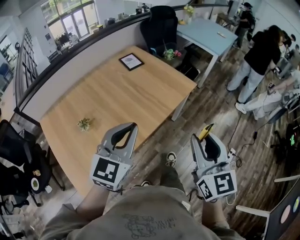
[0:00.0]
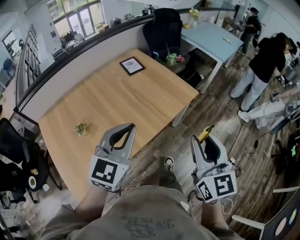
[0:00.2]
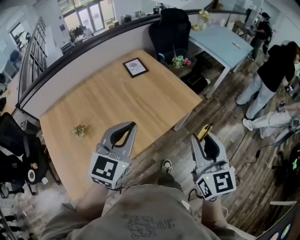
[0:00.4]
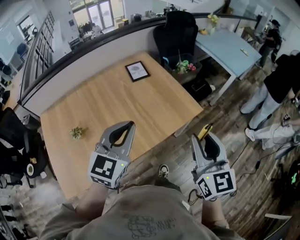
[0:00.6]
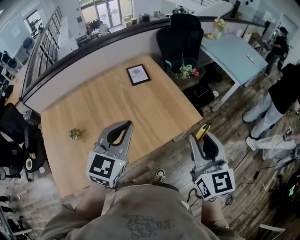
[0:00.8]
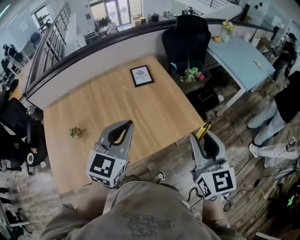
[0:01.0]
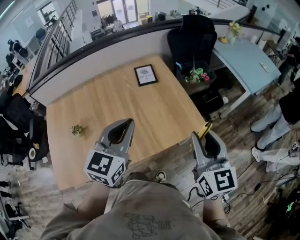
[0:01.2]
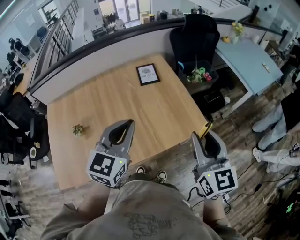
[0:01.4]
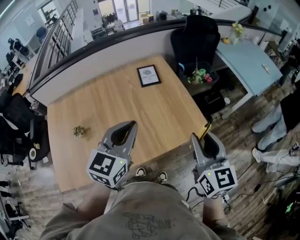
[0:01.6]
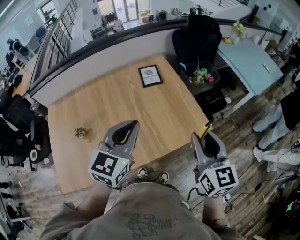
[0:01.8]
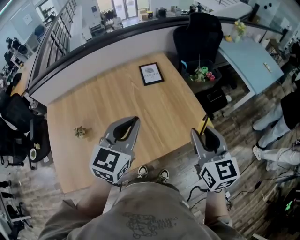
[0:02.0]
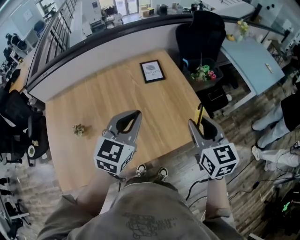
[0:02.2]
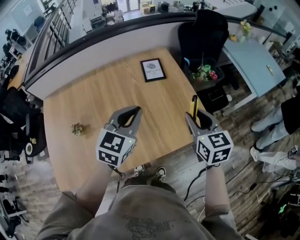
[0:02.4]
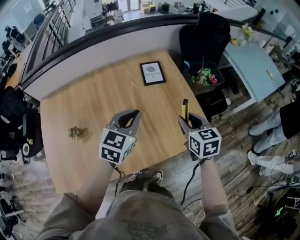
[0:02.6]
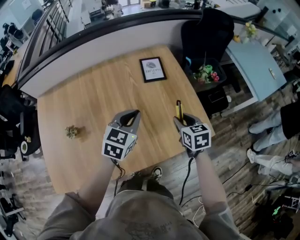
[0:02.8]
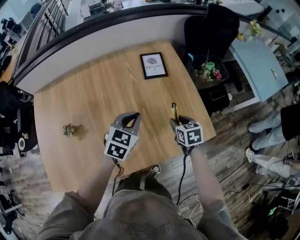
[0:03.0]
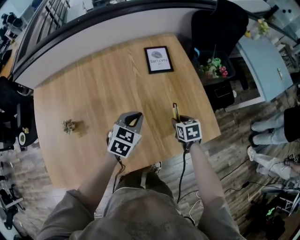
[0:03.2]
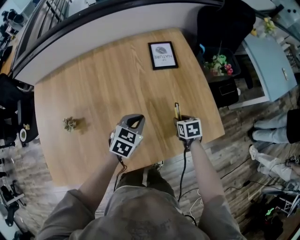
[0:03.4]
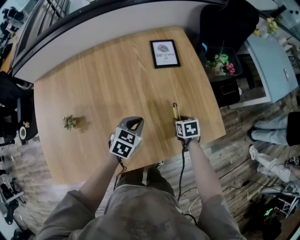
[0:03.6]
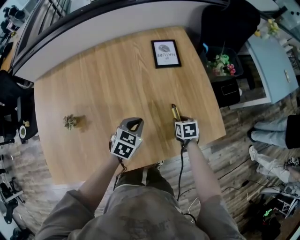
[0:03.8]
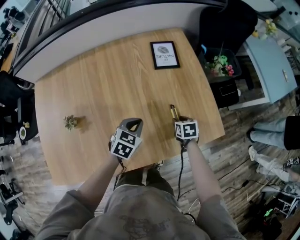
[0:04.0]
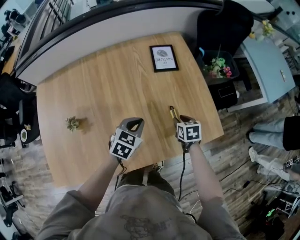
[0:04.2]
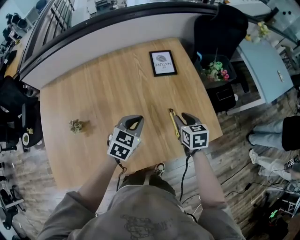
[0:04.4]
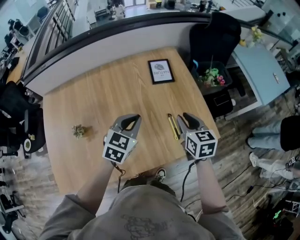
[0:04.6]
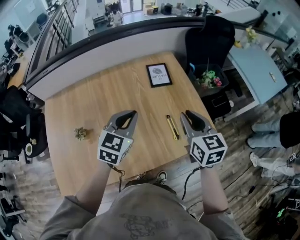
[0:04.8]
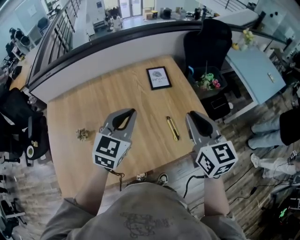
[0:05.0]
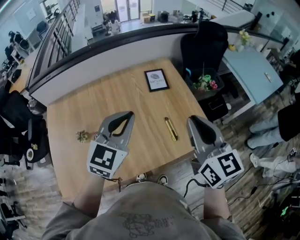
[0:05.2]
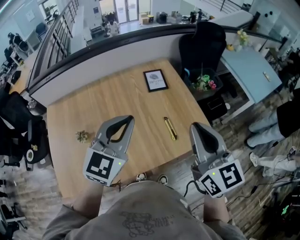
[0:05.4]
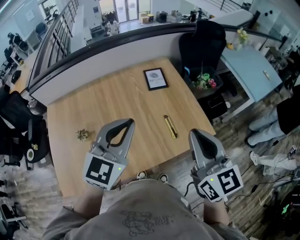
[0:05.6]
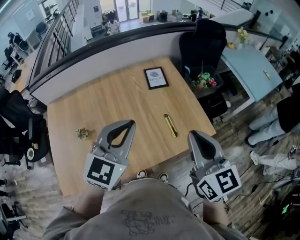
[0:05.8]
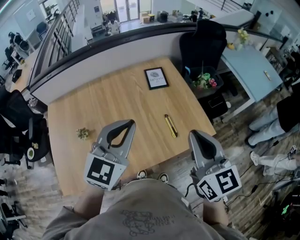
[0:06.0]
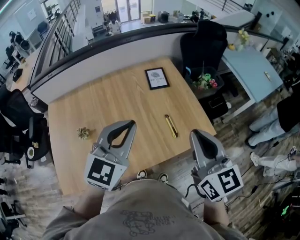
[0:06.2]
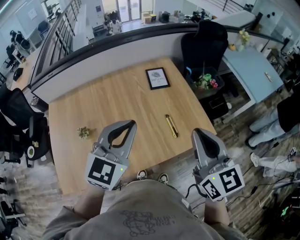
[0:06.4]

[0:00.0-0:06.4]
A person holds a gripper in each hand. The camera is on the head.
0:00.0 to 0:01.6: The left gripper goes approximately 25 cm forward and to the right, and changes its angle by about 20 degrees. The right gripper shifts about 30 cm forward, and swivels some 20 degrees.
0:01.6 to 0:03.2: The two grippers go some 35 cm downward and forward. The right gripper angles its fingers downward, by approximately 50 degrees; the left gripper turns by about 30 degrees.
0:03.2 to 0:04.8: The left gripper shifts approximately 15 cm upward. The right gripper shifts roughly 30 cm upward, and points its fingers about 40 degrees further upward.
0:04.8 to 0:06.4: The right gripper shifts roughly 20 cm backward and upward. Meanwhile the left gripper shifts some 15 cm upward and backward.

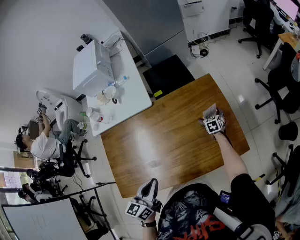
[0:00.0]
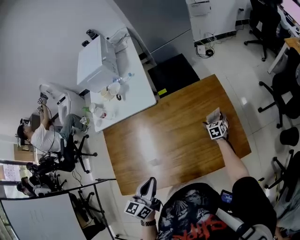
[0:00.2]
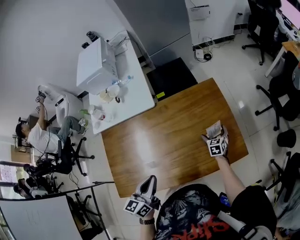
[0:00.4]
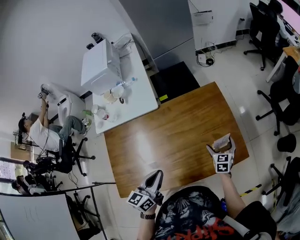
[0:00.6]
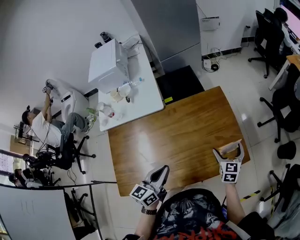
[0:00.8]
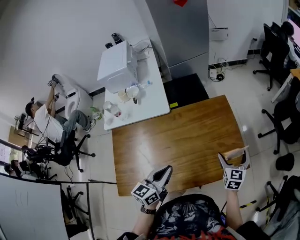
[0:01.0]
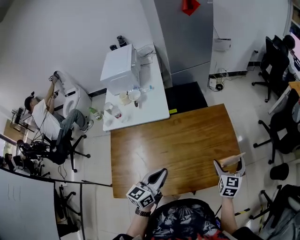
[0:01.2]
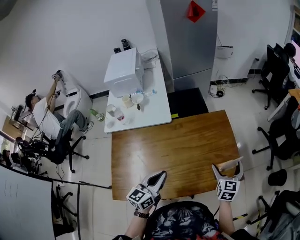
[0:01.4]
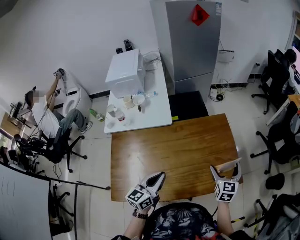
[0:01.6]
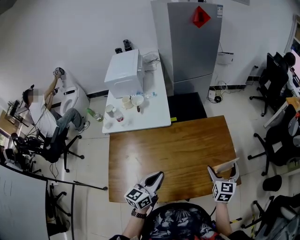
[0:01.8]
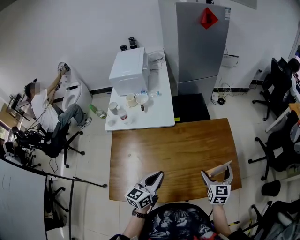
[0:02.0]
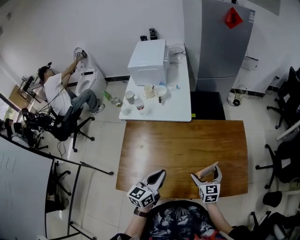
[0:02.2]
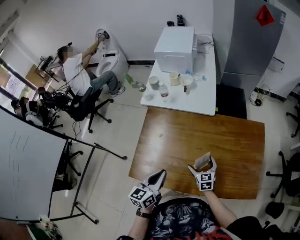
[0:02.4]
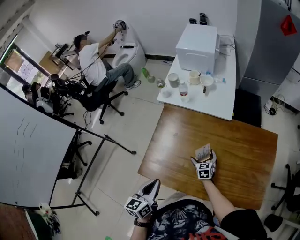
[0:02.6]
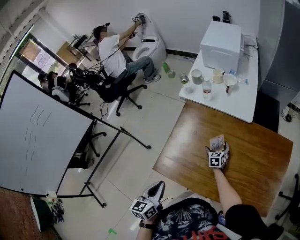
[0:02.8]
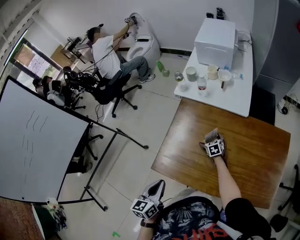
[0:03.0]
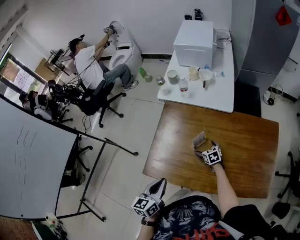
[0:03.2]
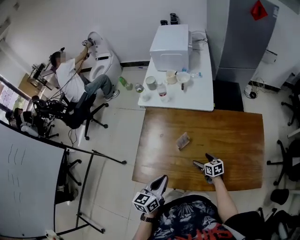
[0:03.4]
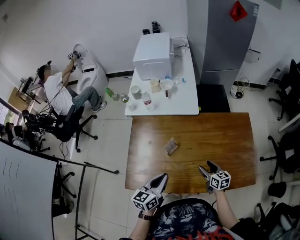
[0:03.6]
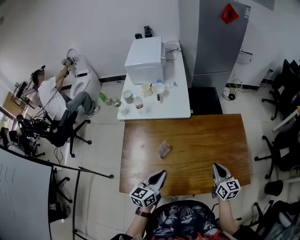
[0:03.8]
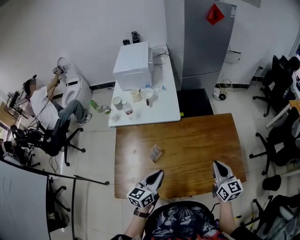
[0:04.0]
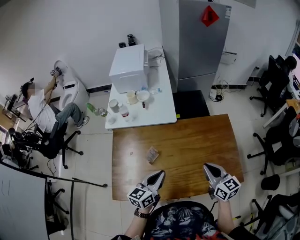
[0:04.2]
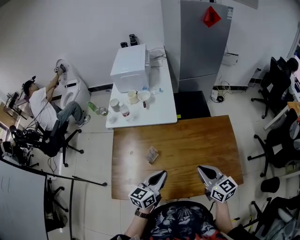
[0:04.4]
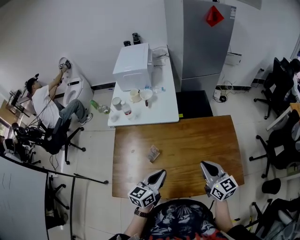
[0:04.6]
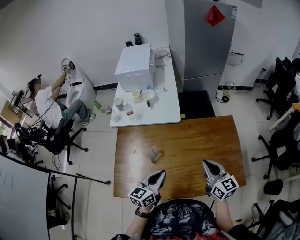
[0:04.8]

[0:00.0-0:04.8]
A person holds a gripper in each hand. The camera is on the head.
0:00.0 to 0:01.6: The left gripper shifts by about 5 cm. Meanwhile the right gripper goes approximately 35 cm upward and backward, and turns by about 30 degrees.
0:01.6 to 0:03.2: The right gripper ends up approximately 50 cm from where it was, and rotates some 60 degrees. Meanwhile the left gripper changes place by roughly 30 cm, and rotates approximately 40 degrees.
0:03.2 to 0:04.8: The left gripper shifts by approximately 25 cm, and rotates roughly 30 degrees. The right gripper moves upward, some 30 cm, angles its fingers upward, by some 40 degrees, and closes up.

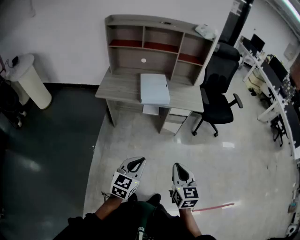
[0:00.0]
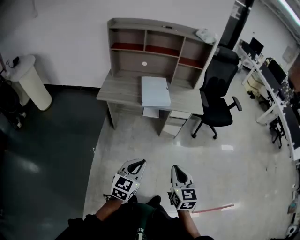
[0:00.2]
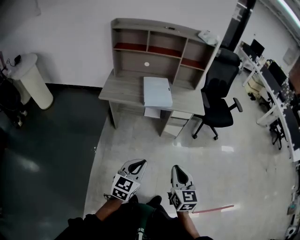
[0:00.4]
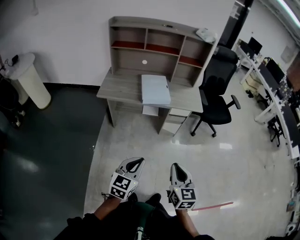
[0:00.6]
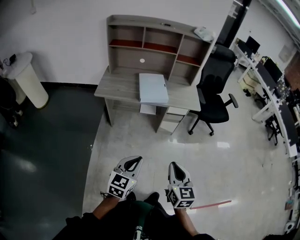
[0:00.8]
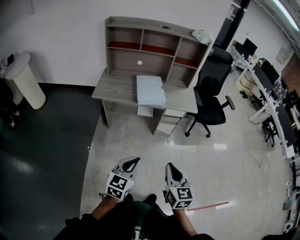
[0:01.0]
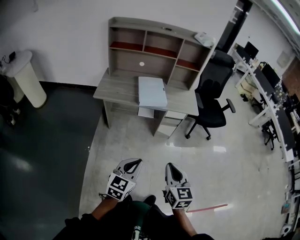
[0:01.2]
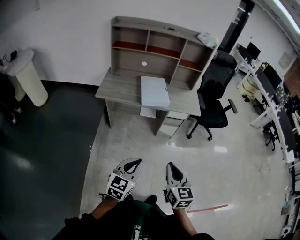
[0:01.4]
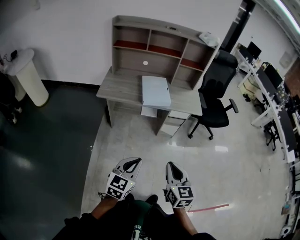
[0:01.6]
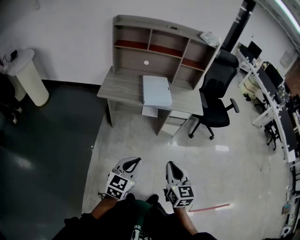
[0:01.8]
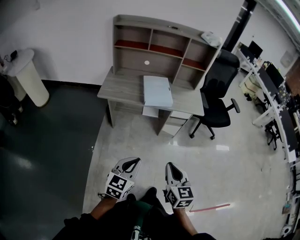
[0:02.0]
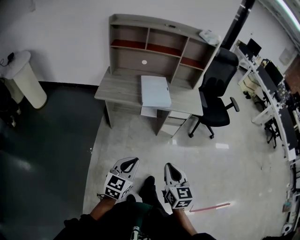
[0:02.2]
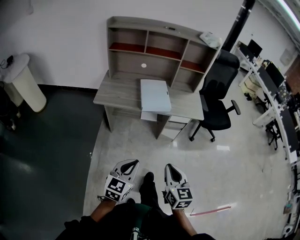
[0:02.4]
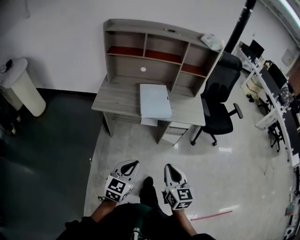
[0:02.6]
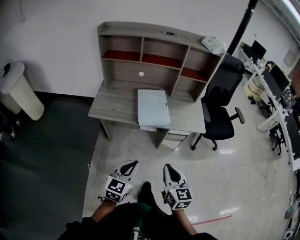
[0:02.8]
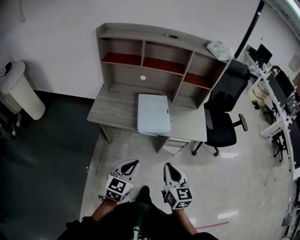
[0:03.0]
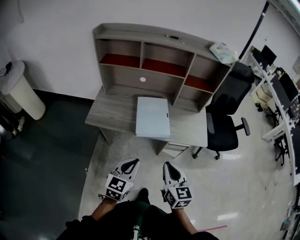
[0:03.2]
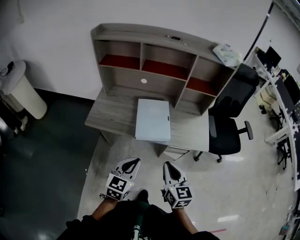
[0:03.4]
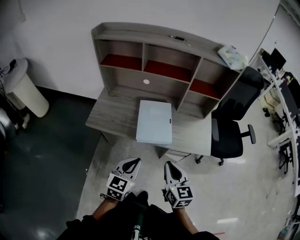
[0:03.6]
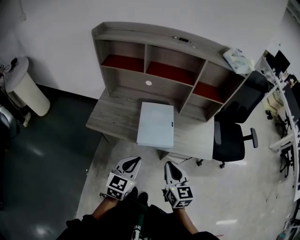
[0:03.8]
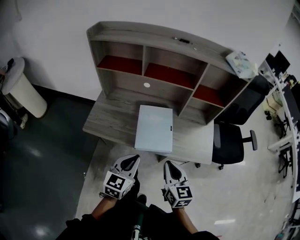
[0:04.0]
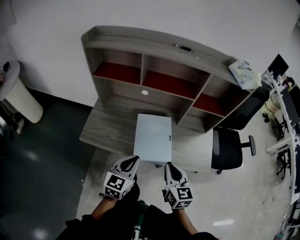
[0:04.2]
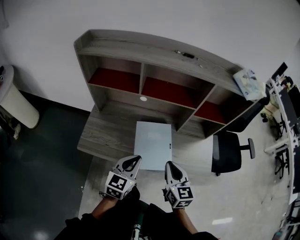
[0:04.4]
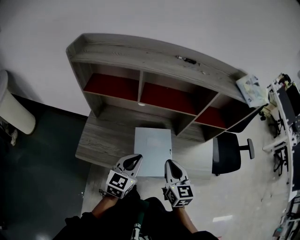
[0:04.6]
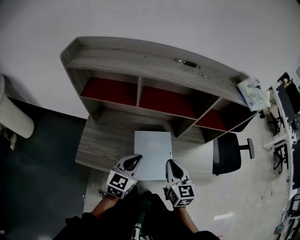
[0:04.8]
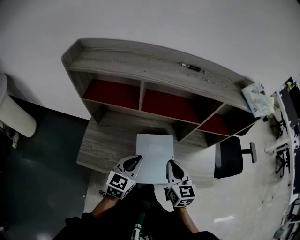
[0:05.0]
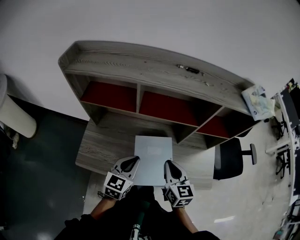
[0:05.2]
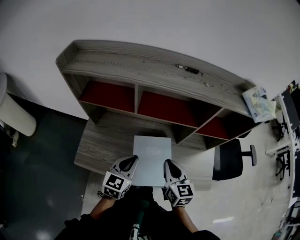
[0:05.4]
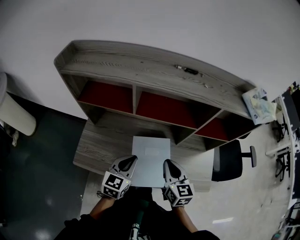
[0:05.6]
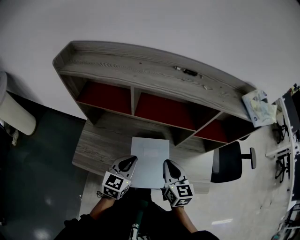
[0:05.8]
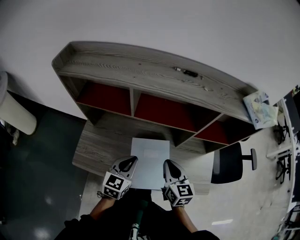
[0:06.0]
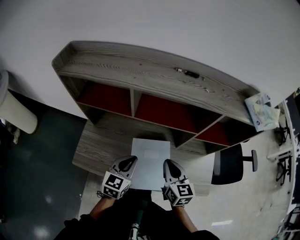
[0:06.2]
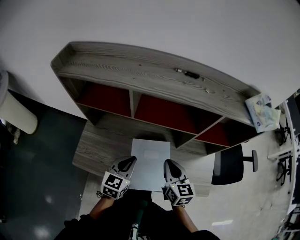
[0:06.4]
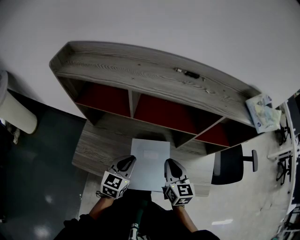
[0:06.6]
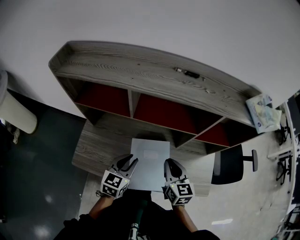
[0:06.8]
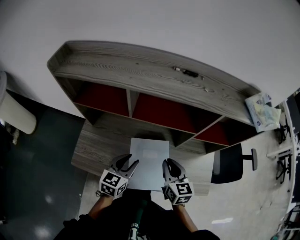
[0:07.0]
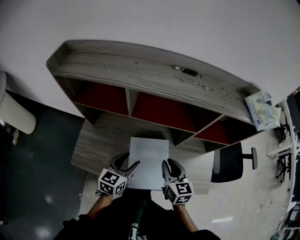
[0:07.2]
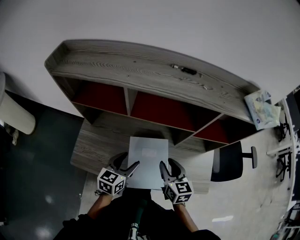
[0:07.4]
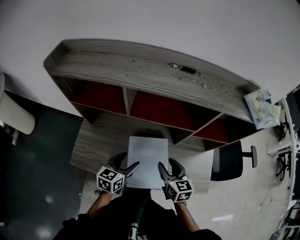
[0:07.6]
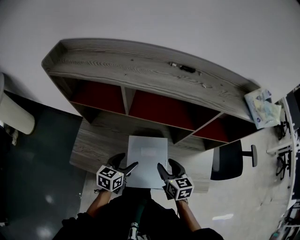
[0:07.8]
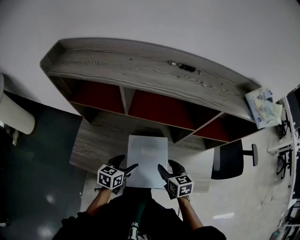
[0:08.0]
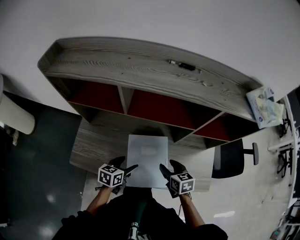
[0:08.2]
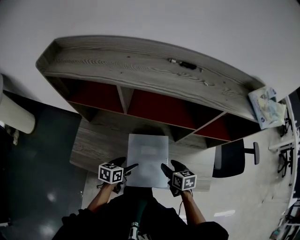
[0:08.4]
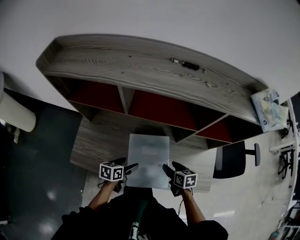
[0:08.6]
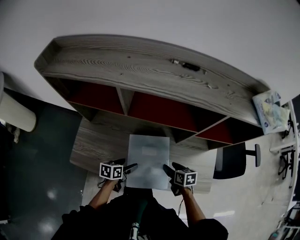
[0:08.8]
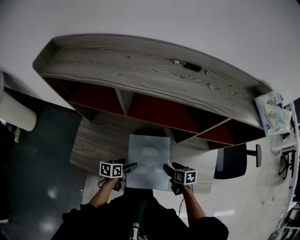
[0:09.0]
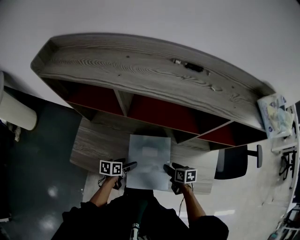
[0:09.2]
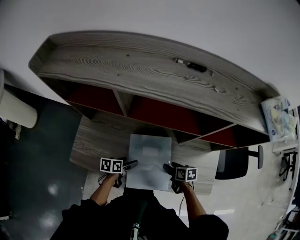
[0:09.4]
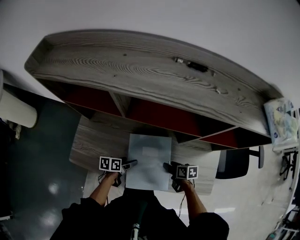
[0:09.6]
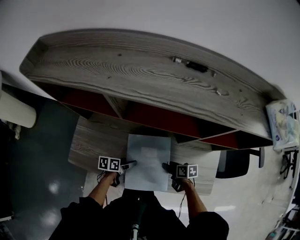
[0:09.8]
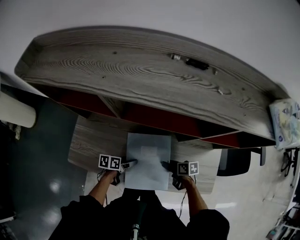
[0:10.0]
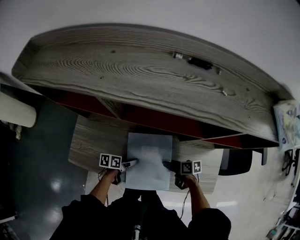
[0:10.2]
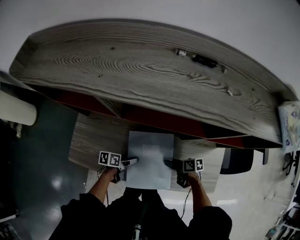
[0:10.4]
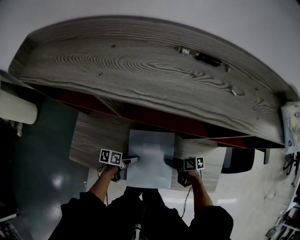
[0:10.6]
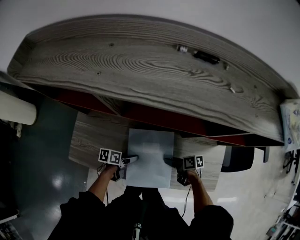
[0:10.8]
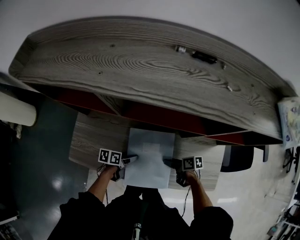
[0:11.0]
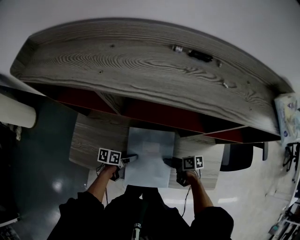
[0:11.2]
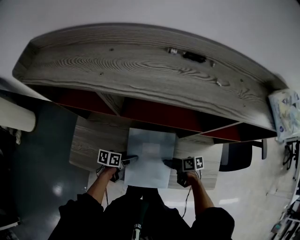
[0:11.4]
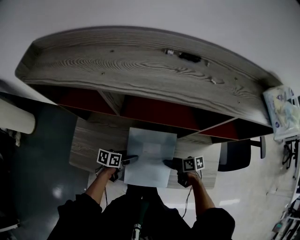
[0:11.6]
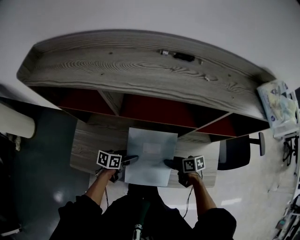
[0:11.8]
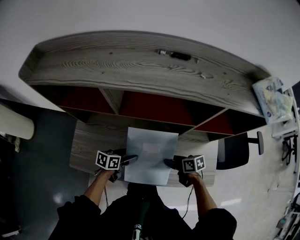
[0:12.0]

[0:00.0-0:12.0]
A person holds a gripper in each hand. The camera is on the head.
0:00.0 to 0:01.6: Both grippers travel together to the left, approximately 5 cm.
0:01.6 to 0:03.0: Both grippers travel together forward, roughly 25 cm.
0:03.0 to 0:04.4: The grippers both shift forward by about 30 cm.
0:04.4 to 0:06.0: The two grippers go approximately 15 cm forward.
0:06.0 to 0:07.6: The right gripper moves downward, some 5 cm, and opens up; the left gripper opens up.
0:07.6 to 0:09.0: Both grippers move downward, roughly 15 cm. The left gripper changes its angle by some 30 degrees. Meanwhile the right gripper swivels approximately 30 degrees.
0:09.0 to 0:10.4: The two grippers go about 5 cm downward. The right gripper turns by about 30 degrees.
0:10.4 to 0:12.0: Both grippers move upward, approximately 10 cm. The left gripper rotates roughly 30 degrees.
